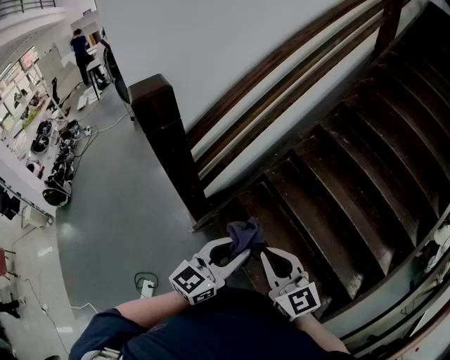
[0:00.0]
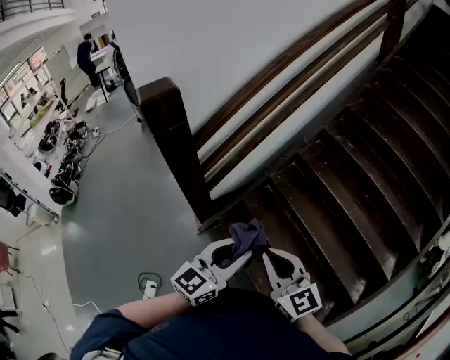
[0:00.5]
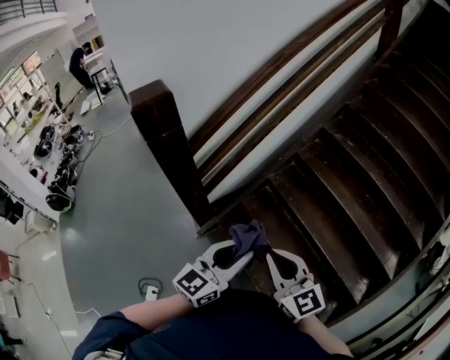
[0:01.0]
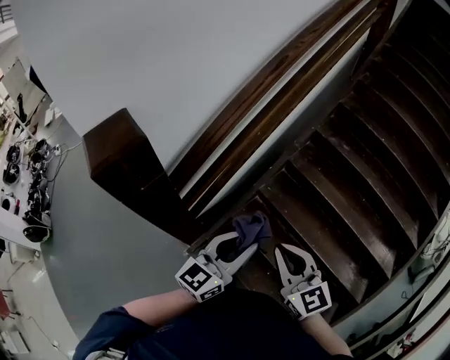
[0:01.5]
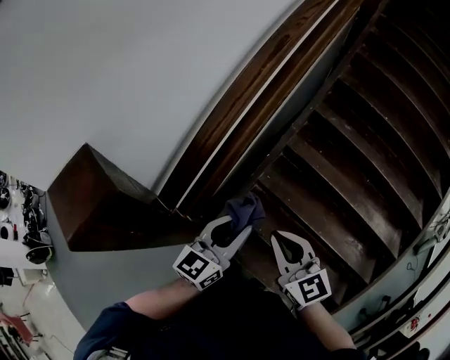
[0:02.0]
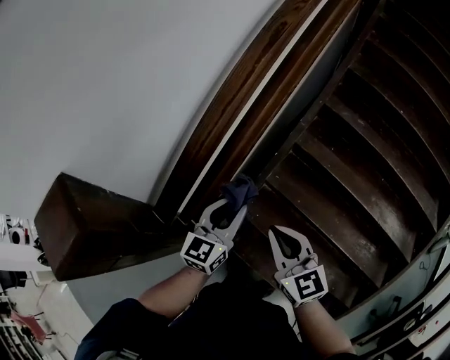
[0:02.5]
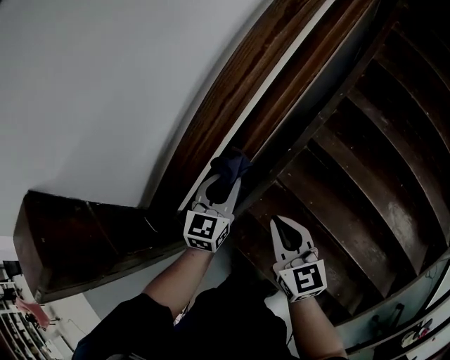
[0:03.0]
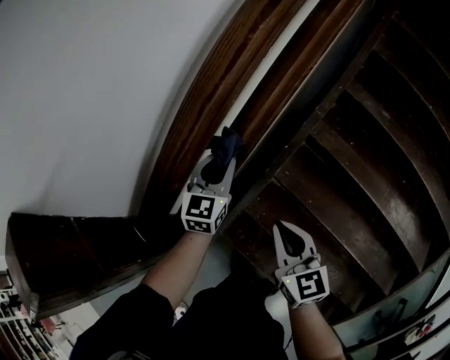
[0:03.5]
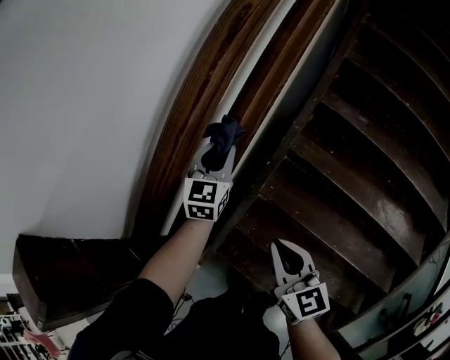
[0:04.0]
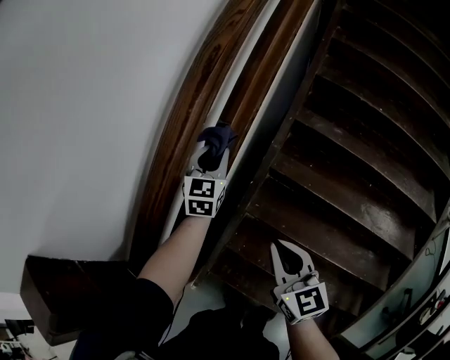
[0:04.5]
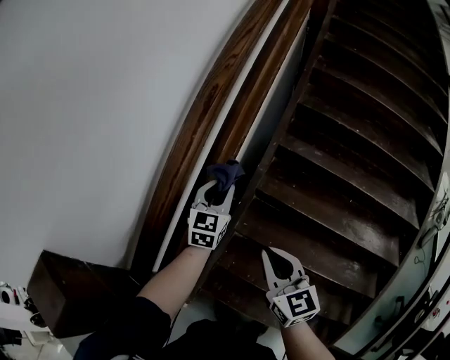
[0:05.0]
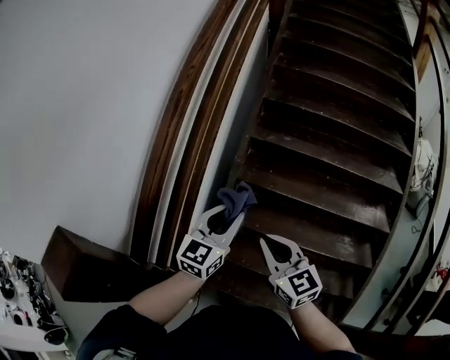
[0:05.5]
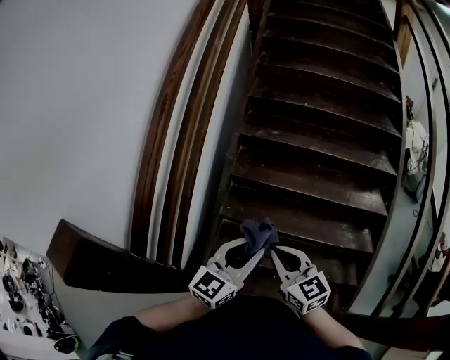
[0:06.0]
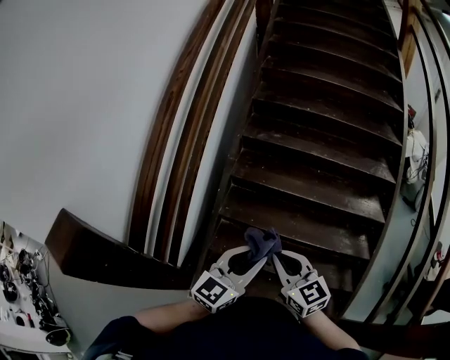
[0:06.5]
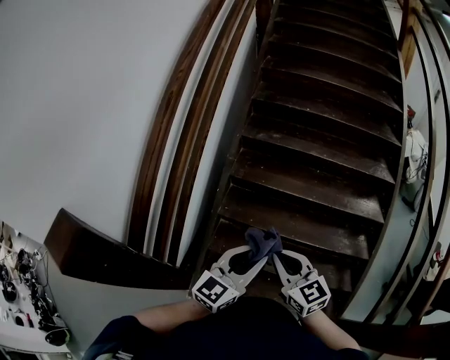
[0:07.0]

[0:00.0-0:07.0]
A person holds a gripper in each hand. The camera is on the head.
0:00.0 to 0:02.0: Both grippers travel together forward, roughly 35 cm. The right gripper turns by roughly 20 degrees.
0:02.0 to 0:03.5: The right gripper shifts roughly 20 cm forward and downward; the left gripper moves forward and downward, about 35 cm, and swivels roughly 30 degrees.
0:03.5 to 0:05.0: The right gripper is displaced upward and to the right by about 15 cm. The left gripper goes roughly 20 cm to the right and upward.
0:05.0 to 0:07.0: The right gripper is displaced backward and to the right by roughly 25 cm; the left gripper moves backward and to the right, roughly 50 cm, and turns by approximately 40 degrees.

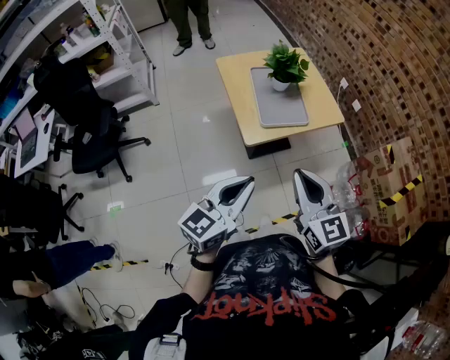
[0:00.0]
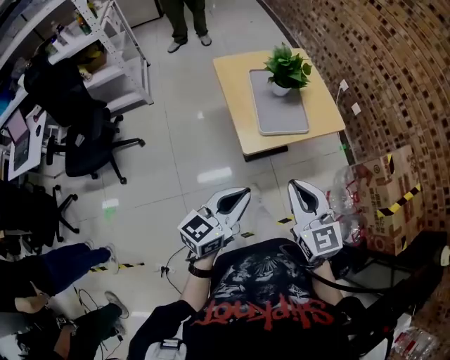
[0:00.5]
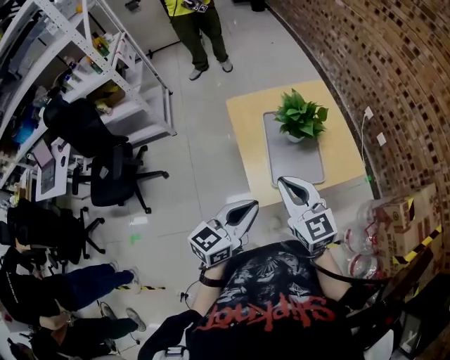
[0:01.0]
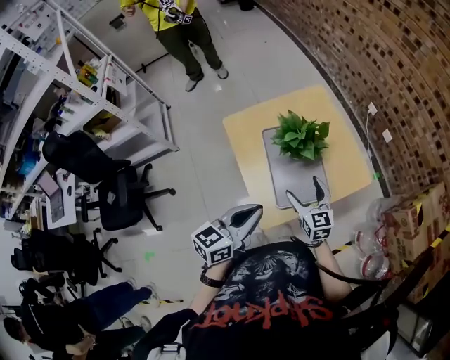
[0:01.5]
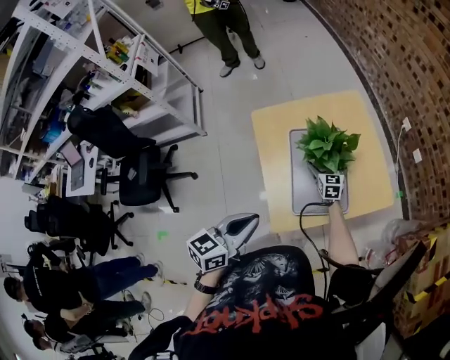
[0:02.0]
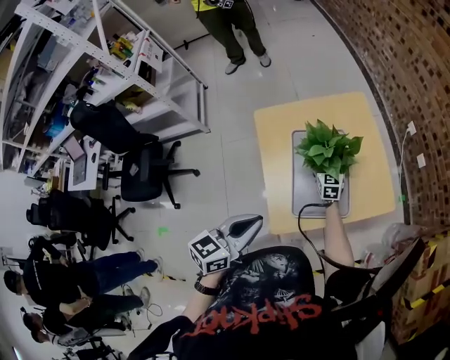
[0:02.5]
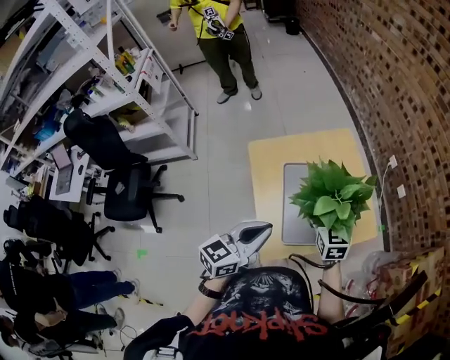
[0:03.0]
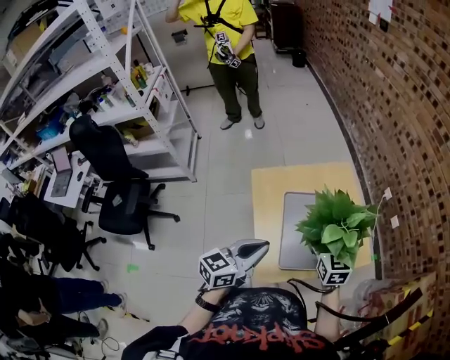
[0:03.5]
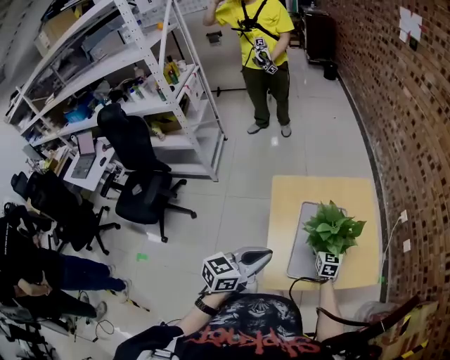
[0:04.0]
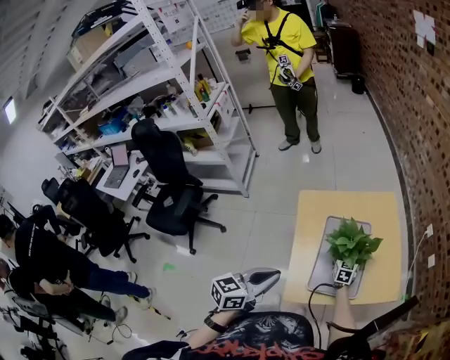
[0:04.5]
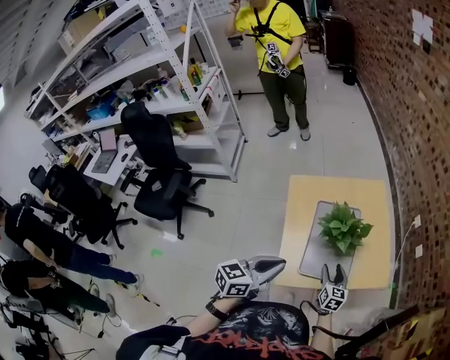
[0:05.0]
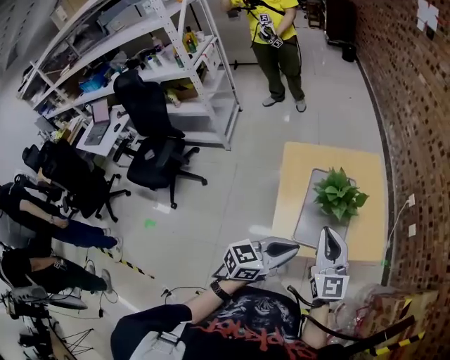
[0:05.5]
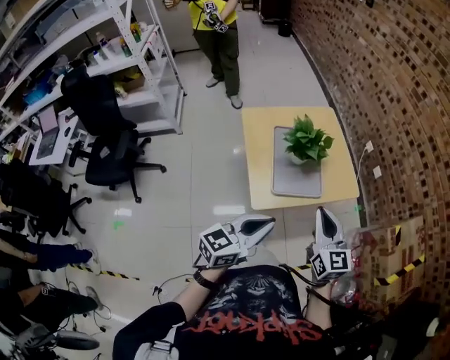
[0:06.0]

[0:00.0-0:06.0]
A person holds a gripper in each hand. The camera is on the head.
0:00.0 to 0:02.0: The left gripper travels forward by about 35 cm, and turns by about 20 degrees. The right gripper heads forward and downward, covering some 70 cm, turns by approximately 20 degrees, and opens.
0:02.0 to 0:04.0: The right gripper travels upward and back again, about 30 cm each way.
0:04.0 to 0:06.0: The left gripper heads backward and to the right, covering approximately 20 cm, while the right gripper moves backward and upward, some 40 cm, turns by approximately 20 degrees, and closes up.

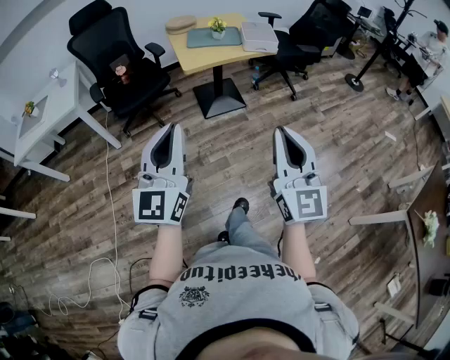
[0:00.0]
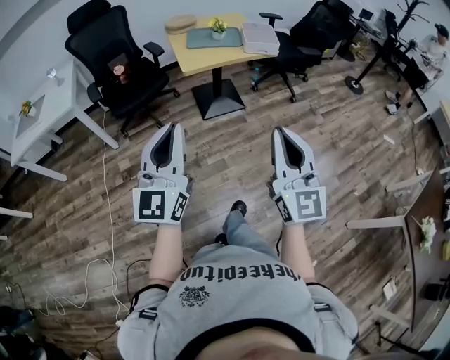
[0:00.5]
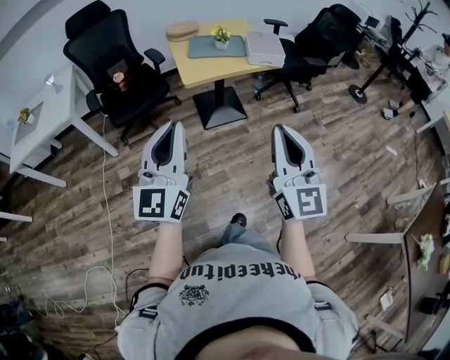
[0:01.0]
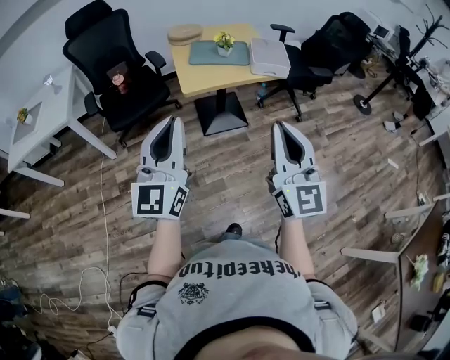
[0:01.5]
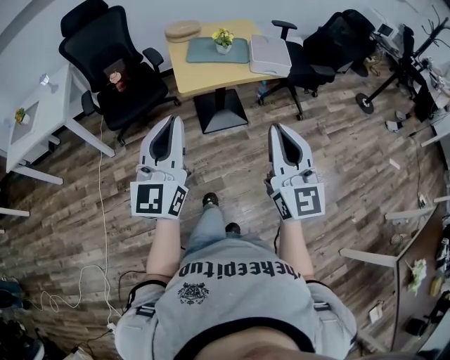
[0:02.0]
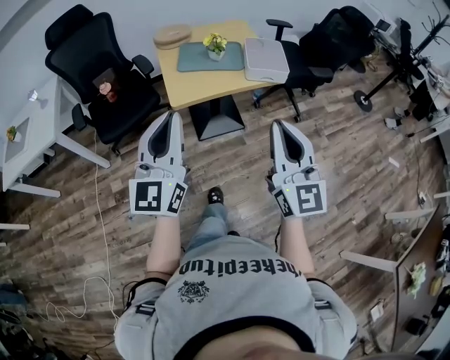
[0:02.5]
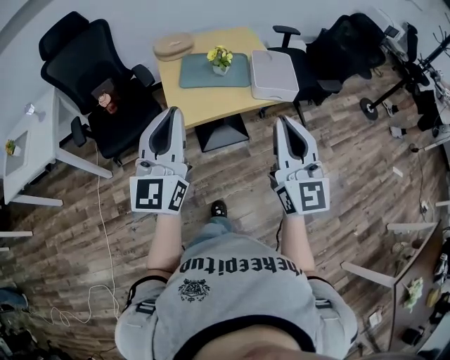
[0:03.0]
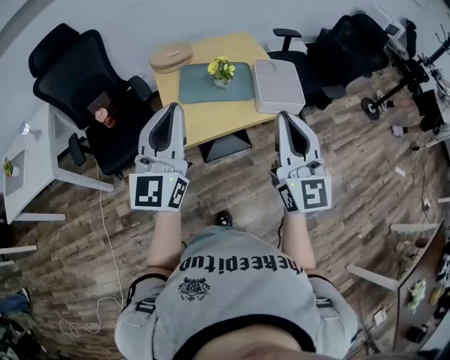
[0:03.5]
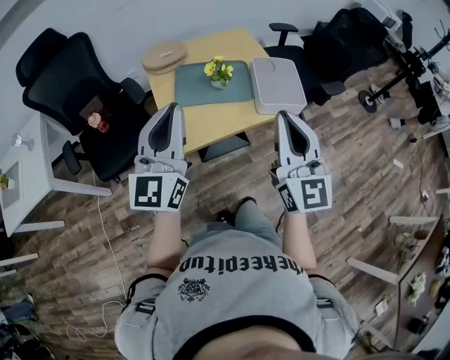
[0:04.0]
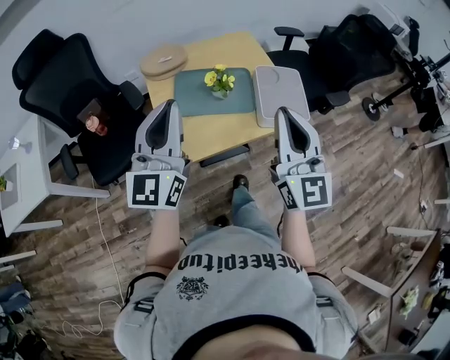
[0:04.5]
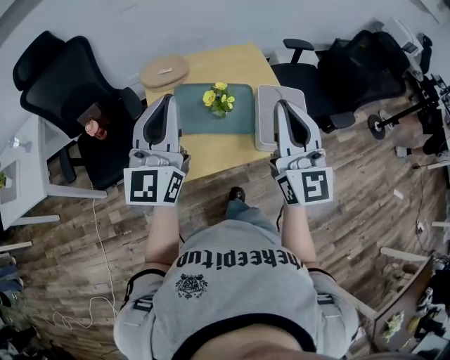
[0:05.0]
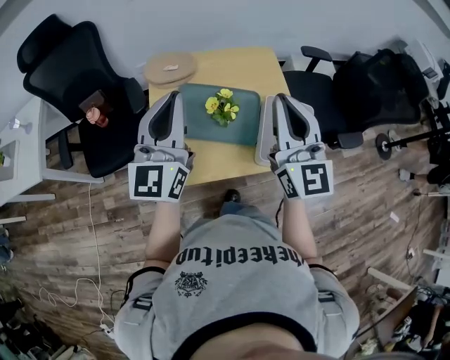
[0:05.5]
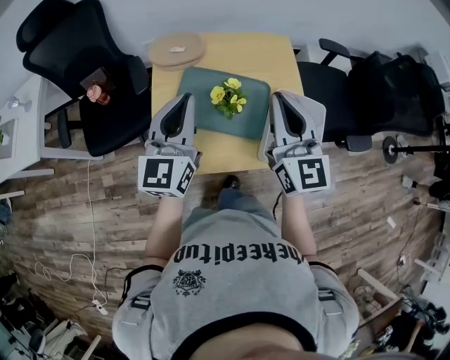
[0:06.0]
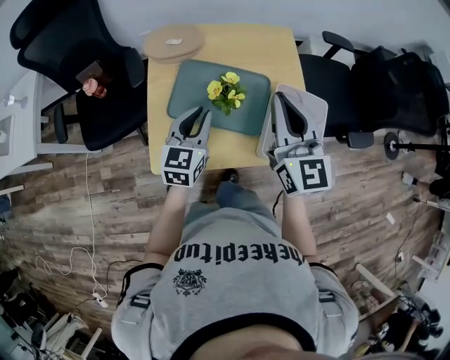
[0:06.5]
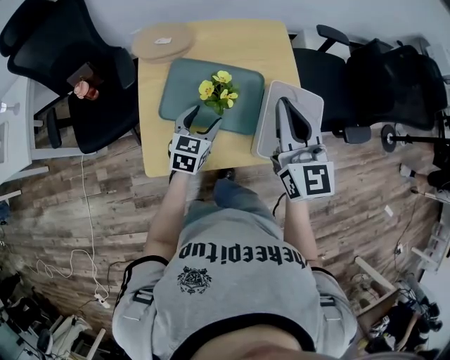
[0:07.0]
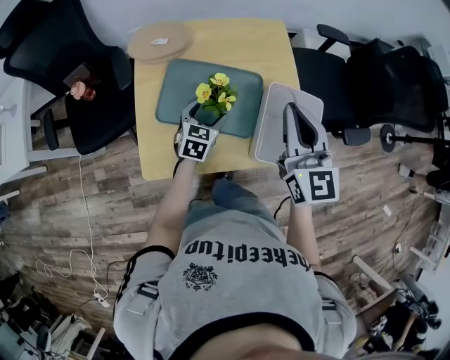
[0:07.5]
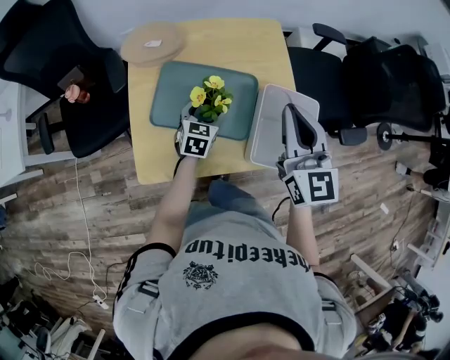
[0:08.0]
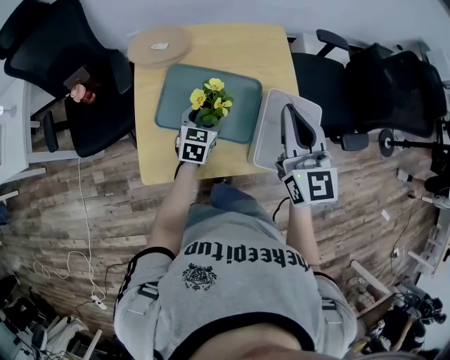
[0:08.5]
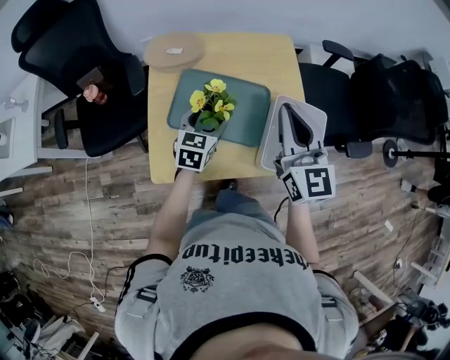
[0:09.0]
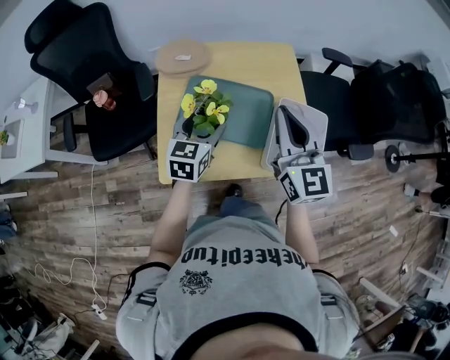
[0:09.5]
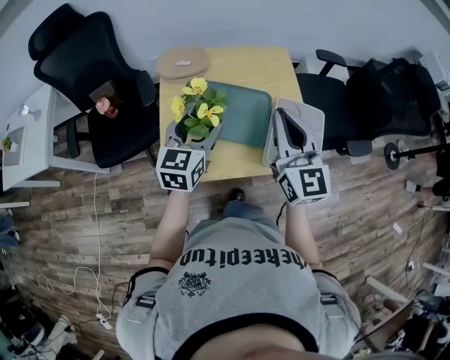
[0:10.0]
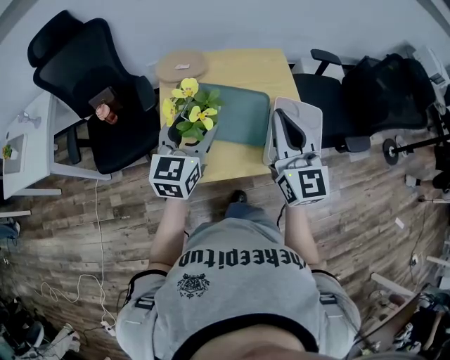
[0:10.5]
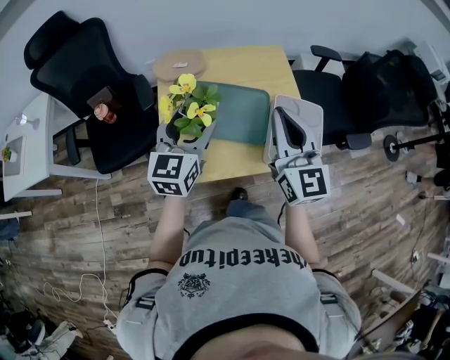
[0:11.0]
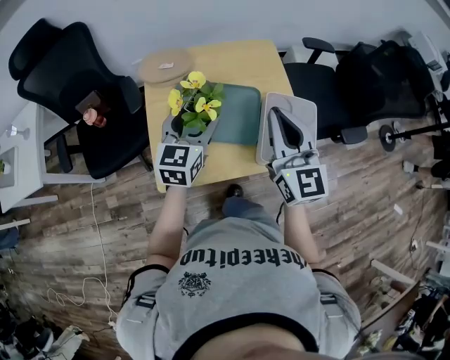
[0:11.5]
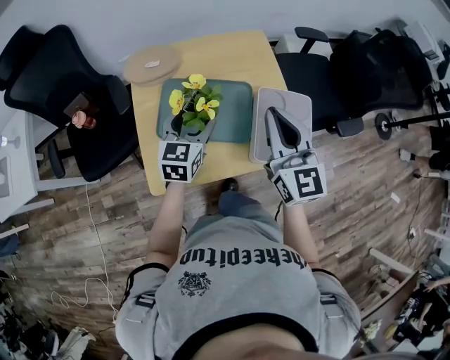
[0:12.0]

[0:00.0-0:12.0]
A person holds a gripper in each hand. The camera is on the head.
0:00.0 to 0:02.0: The two grippers go some 25 cm forward.
0:02.0 to 0:04.0: The two grippers go some 35 cm forward.
0:04.0 to 0:06.0: Both grippers move forward, approximately 25 cm. The right gripper turns by some 20 degrees.
0:06.0 to 0:08.0: The left gripper heads downward, covering roughly 30 cm, angles its fingers downward, by some 40 degrees, and opens up; the right gripper travels to the right and downward by approximately 10 cm.
0:08.0 to 0:10.0: The right gripper goes some 10 cm backward, to the left and upward. The left gripper is displaced upward by roughly 25 cm, and changes its angle by roughly 20 degrees.
0:10.0 to 0:12.0: The right gripper changes place by approximately 5 cm. The left gripper travels downward and forward by about 10 cm.

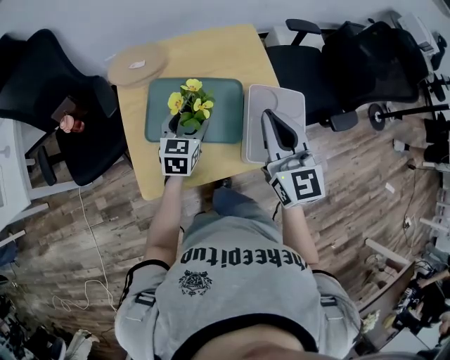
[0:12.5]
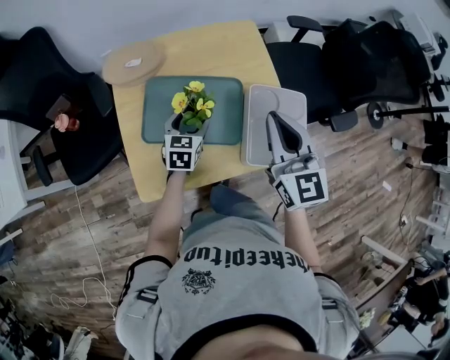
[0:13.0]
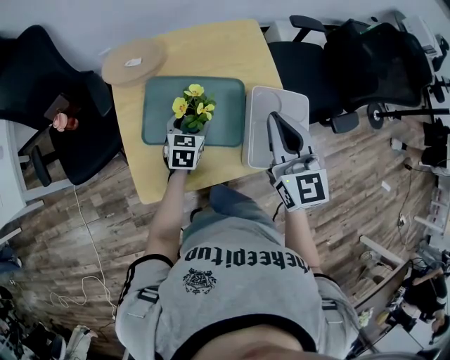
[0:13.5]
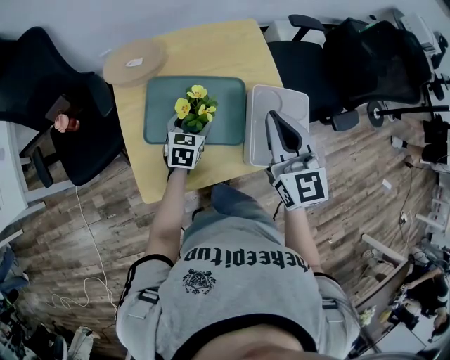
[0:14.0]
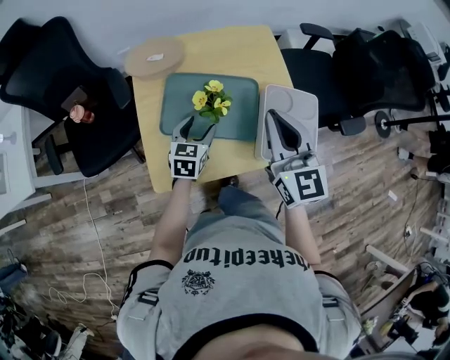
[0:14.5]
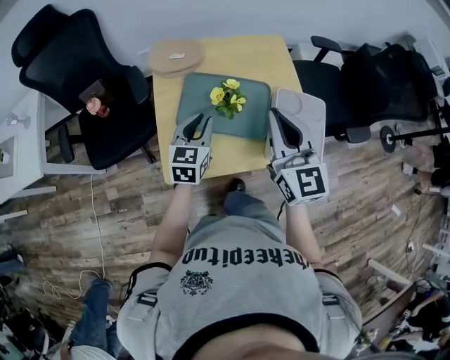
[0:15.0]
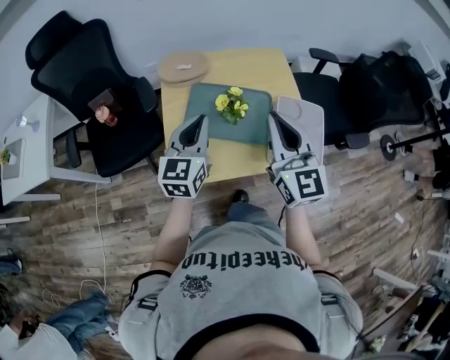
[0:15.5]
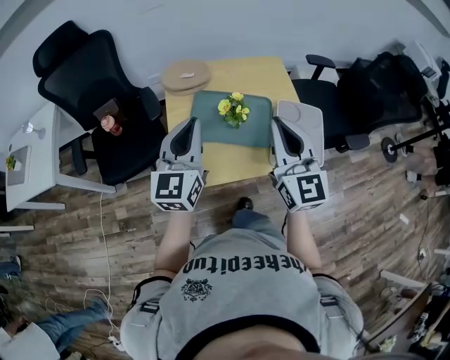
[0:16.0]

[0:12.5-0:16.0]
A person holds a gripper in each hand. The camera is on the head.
0:12.5 to 0:14.5: The left gripper ends up some 5 cm from where it was.
0:14.5 to 0:16.0: The left gripper heads upward, covering some 25 cm, angles its fingers upward, by some 40 degrees, and closes up; the right gripper shifts approximately 15 cm backward, upward and to the left.
